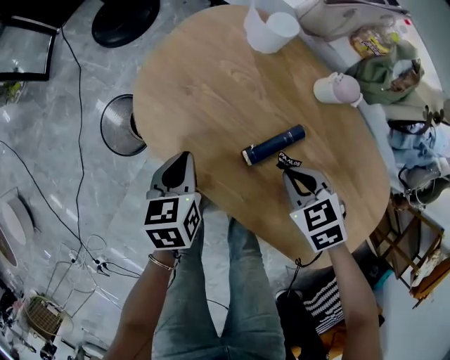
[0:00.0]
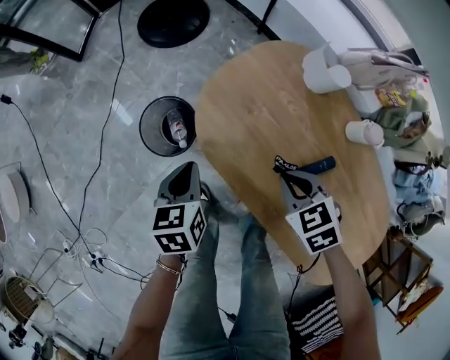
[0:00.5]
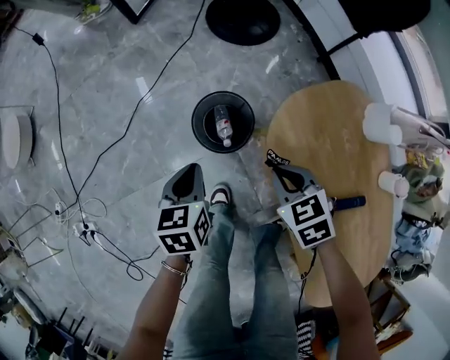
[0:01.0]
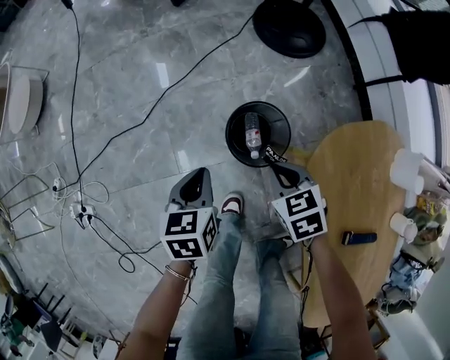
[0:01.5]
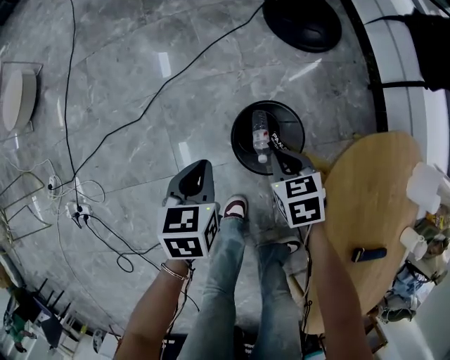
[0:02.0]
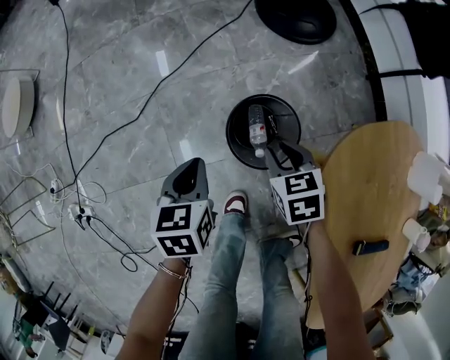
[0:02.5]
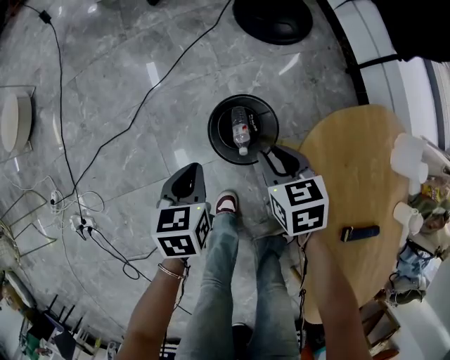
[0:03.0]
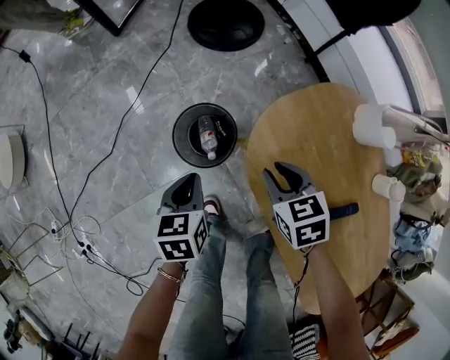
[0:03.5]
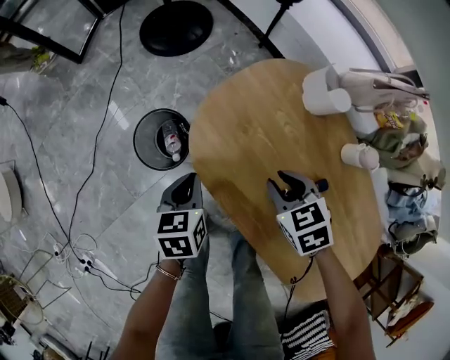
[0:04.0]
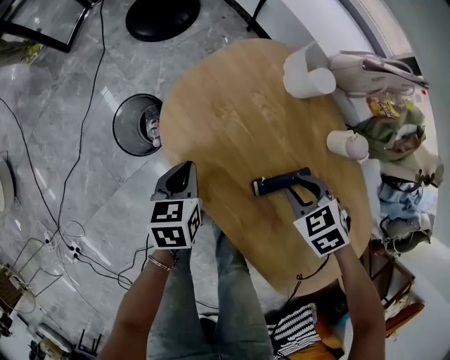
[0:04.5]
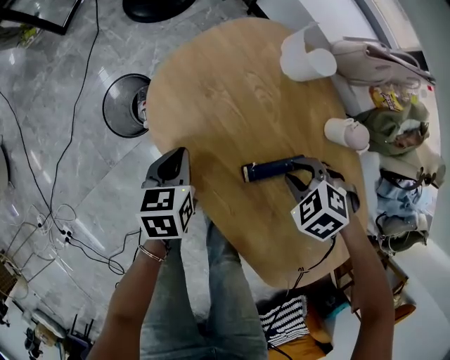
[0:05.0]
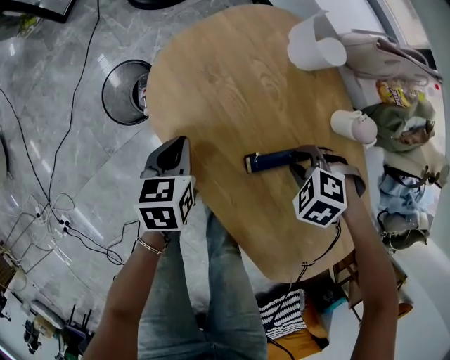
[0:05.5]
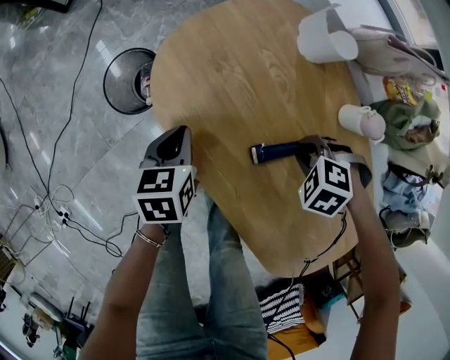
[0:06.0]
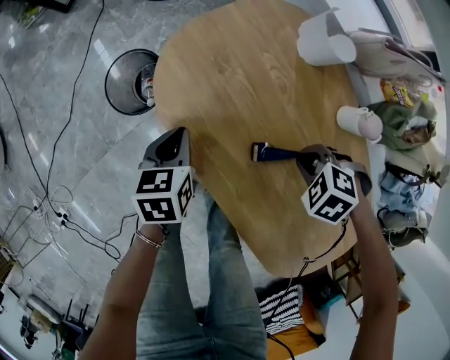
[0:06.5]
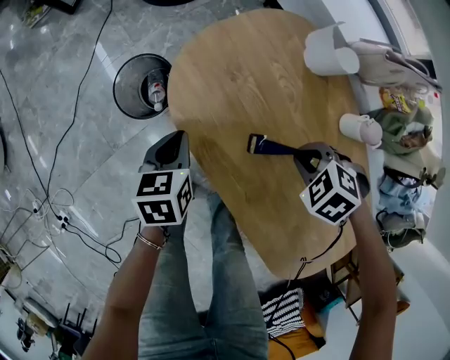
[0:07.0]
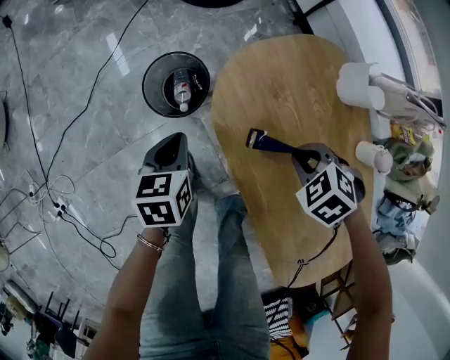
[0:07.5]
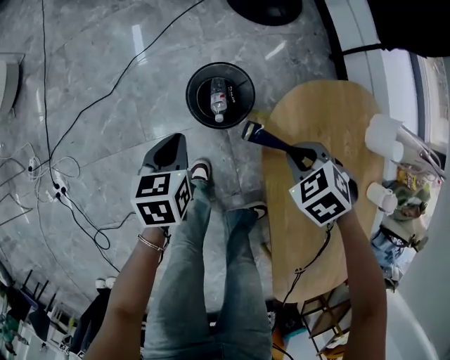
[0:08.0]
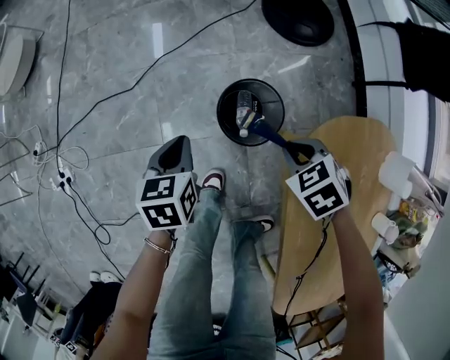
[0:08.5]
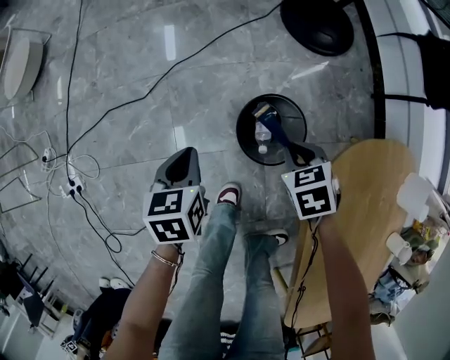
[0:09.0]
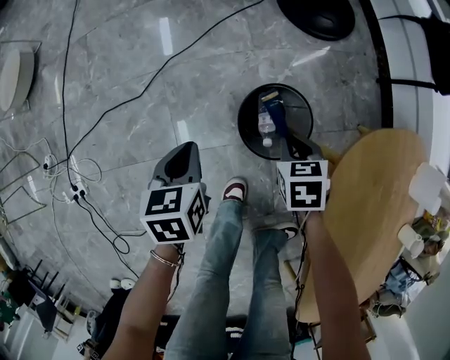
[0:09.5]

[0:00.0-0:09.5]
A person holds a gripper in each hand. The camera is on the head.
0:00.0 to 0:02.0: The right gripper moves roughly 50 cm, and rotates roughly 20 degrees; the left gripper ends up about 40 cm from where it was, and turns by approximately 30 degrees.
0:02.0 to 0:04.0: The left gripper heads to the right, covering about 25 cm, and changes its angle by approximately 20 degrees, while the right gripper moves to the right, backward and upward, approximately 35 cm, and opens up.
0:04.0 to 0:05.5: The right gripper shifts by approximately 20 cm, and rotates around the line of its fingers by about 40 degrees, counterclockwise from behind; the left gripper changes place by roughly 10 cm.
0:05.5 to 0:07.5: The left gripper ends up about 15 cm from where it was. Meanwhile the right gripper ends up about 15 cm from where it was, and closes its fingers.
0:07.5 to 0:09.5: The left gripper changes place by about 25 cm. Meanwhile the right gripper changes place by about 35 cm, and turns by some 30 degrees.

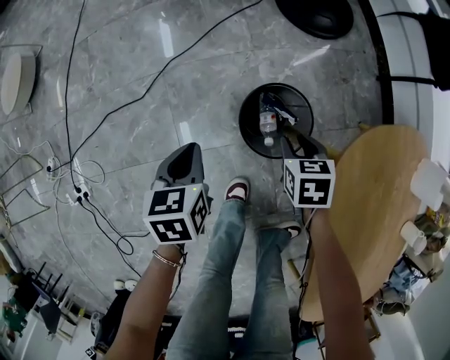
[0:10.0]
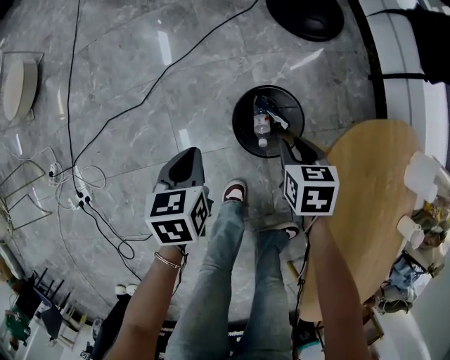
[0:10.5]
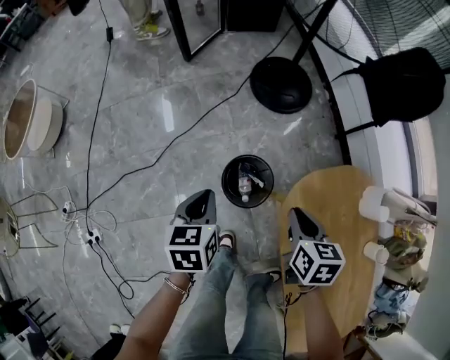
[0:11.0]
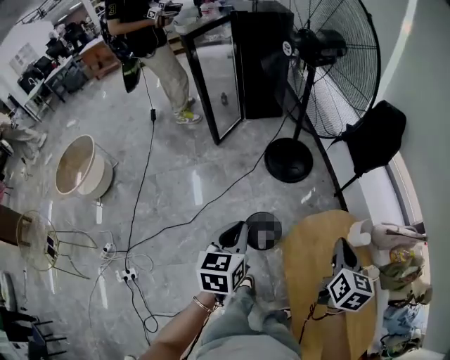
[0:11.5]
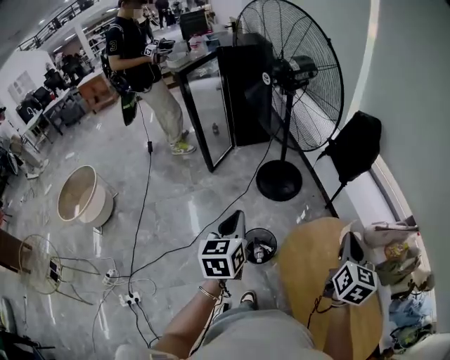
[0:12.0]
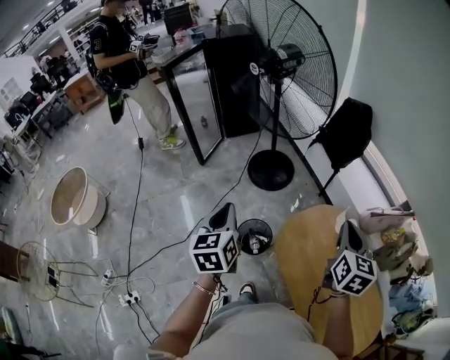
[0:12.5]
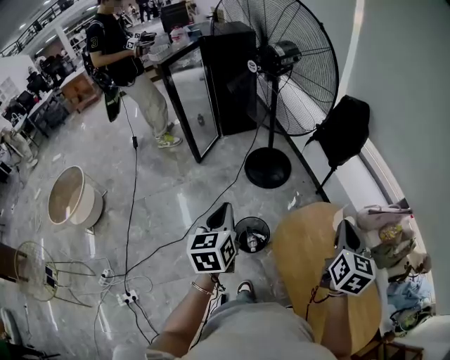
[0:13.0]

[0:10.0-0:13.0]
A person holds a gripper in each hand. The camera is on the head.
0:10.0 to 0:11.5: Both grippers move upward, some 50 cm. The right gripper angles its fingers upward, by about 40 degrees, and closes, while the left gripper rotates about 30 degrees.
0:11.5 to 0:13.0: The left gripper goes approximately 5 cm upward. Meanwhile the right gripper is displaced upward and to the right by some 10 cm.

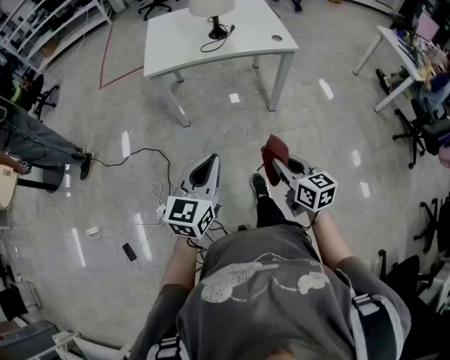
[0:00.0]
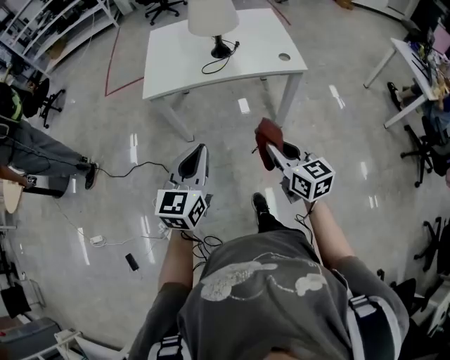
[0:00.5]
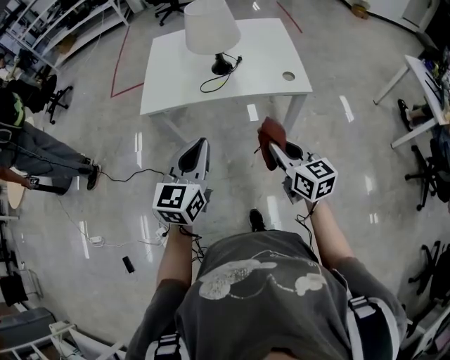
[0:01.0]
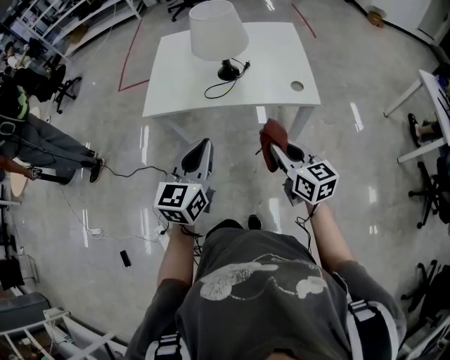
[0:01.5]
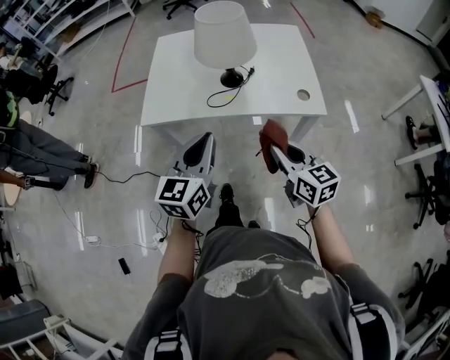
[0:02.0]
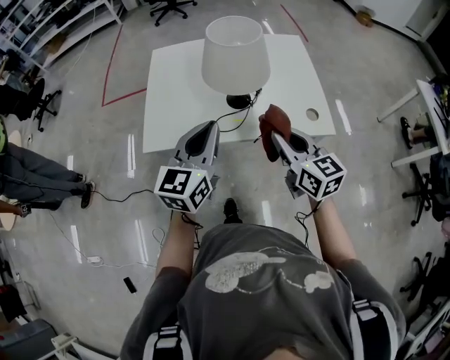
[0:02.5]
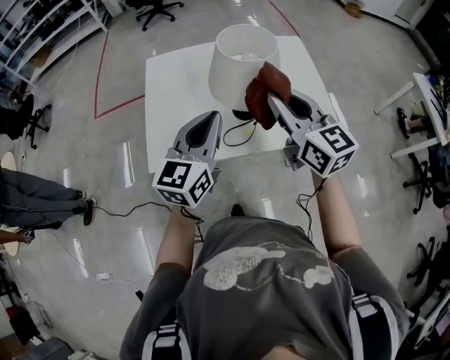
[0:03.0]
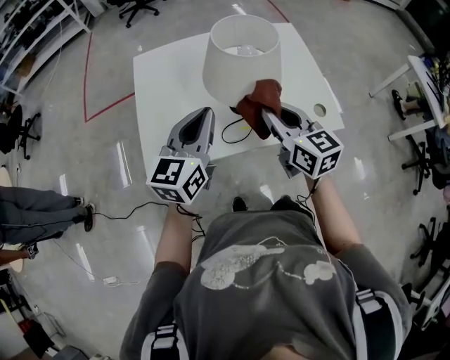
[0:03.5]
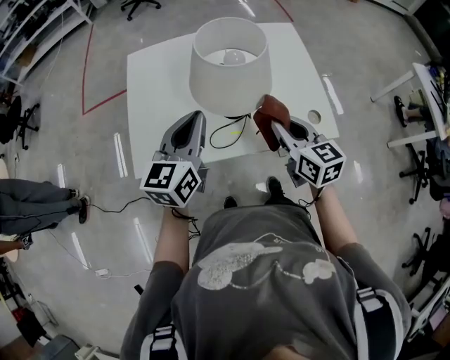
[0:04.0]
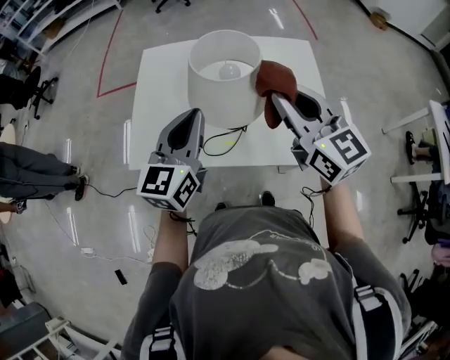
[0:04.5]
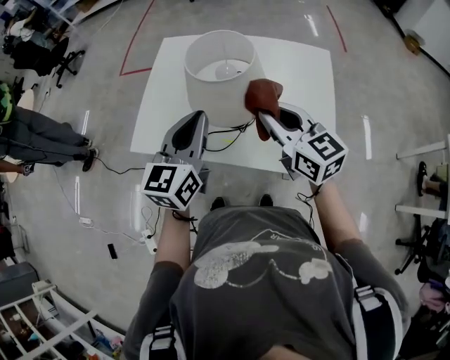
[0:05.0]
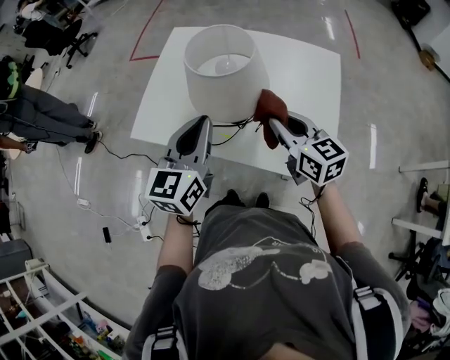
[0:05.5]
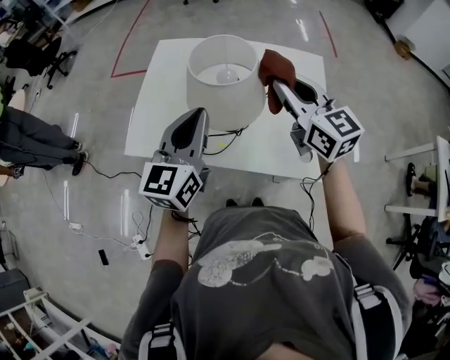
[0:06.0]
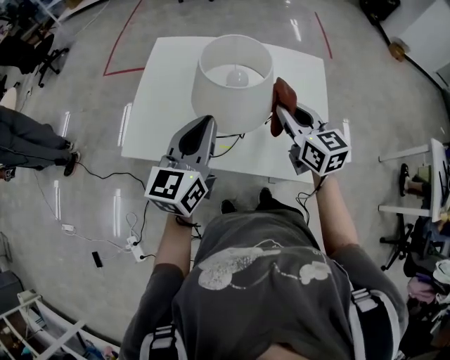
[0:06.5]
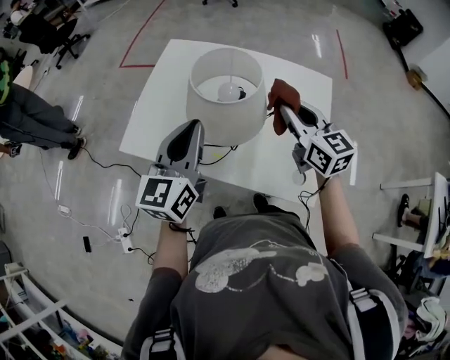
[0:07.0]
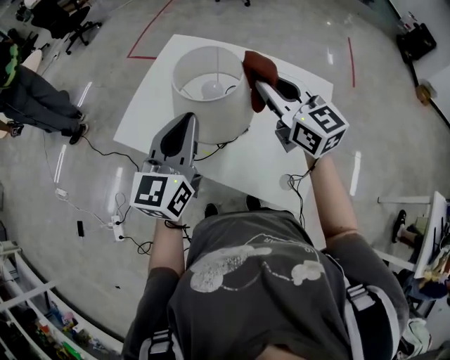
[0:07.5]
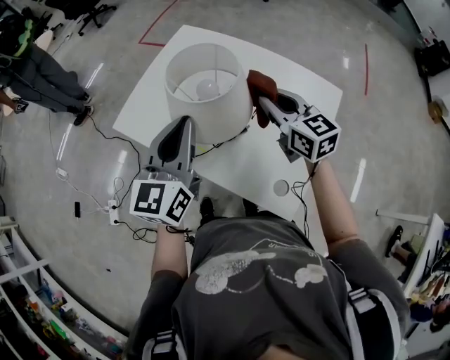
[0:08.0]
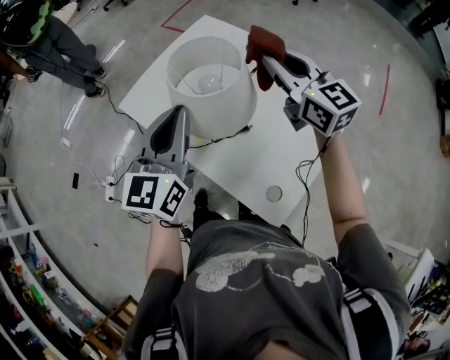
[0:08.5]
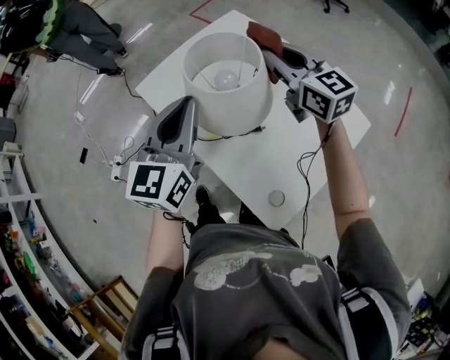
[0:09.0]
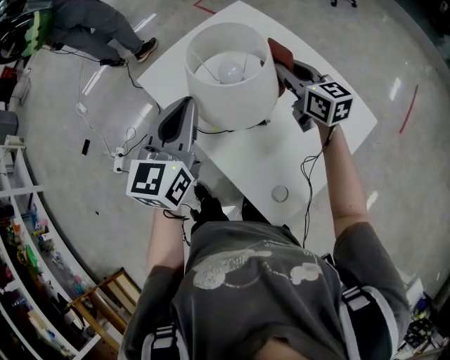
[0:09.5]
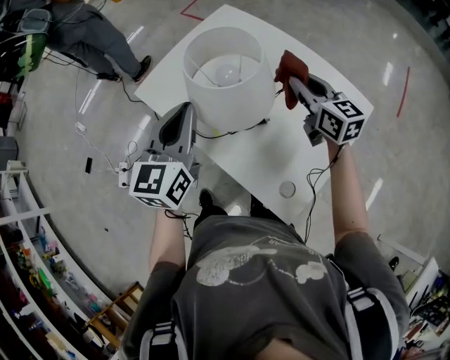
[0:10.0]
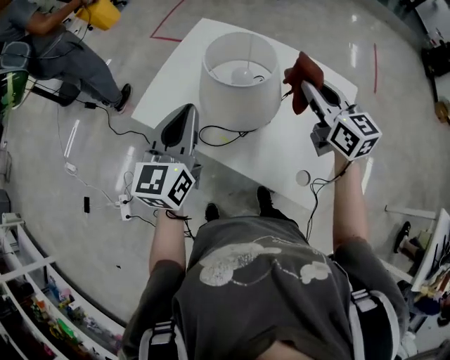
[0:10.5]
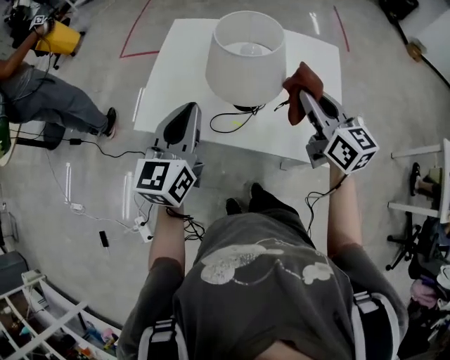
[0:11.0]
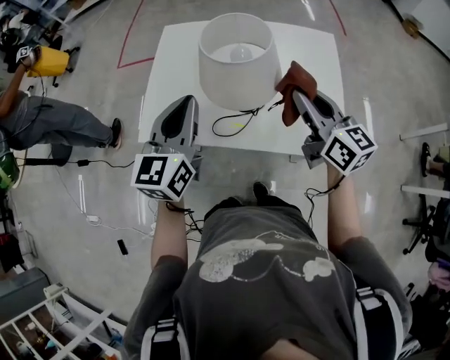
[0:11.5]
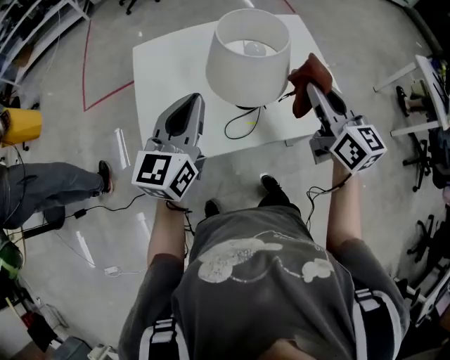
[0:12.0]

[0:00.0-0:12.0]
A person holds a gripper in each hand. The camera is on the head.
0:00.0 to 0:02.0: Both grippers move forward, approximately 35 cm.
0:02.0 to 0:04.0: The two grippers go about 25 cm forward.
0:04.0 to 0:06.0: The right gripper moves up and down over roughly 15 cm, changing direction 2 times, and changes its angle by approximately 30 degrees; the left gripper is displaced upward by approximately 5 cm.
0:06.0 to 0:08.0: The left gripper moves about 5 cm, and changes its angle by about 20 degrees; the right gripper swings up and down, about 10 cm each way, with 2 reversals, and changes its angle by approximately 20 degrees.
0:08.0 to 0:10.0: The right gripper travels upward and back again, approximately 10 cm each way.
0:10.0 to 0:12.0: The right gripper ends up some 25 cm from where it was, and changes its angle by roughly 60 degrees. Meanwhile the left gripper moves some 10 cm, and turns by some 60 degrees.

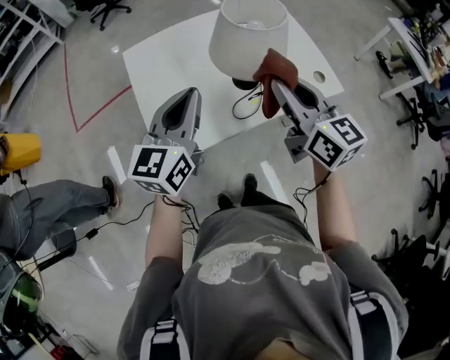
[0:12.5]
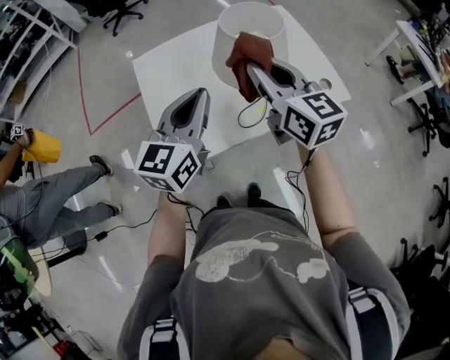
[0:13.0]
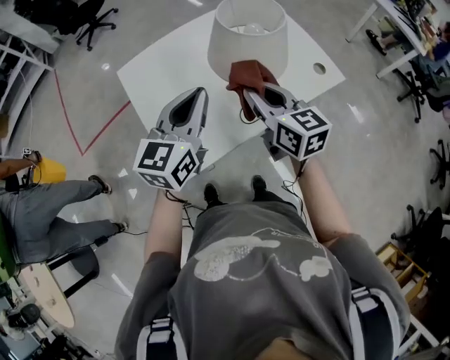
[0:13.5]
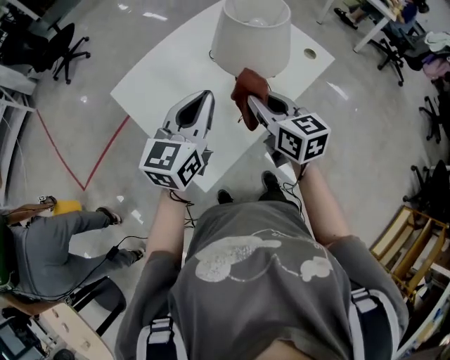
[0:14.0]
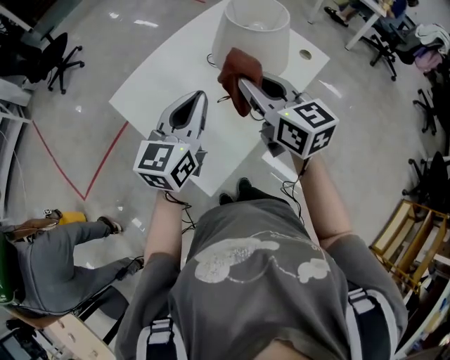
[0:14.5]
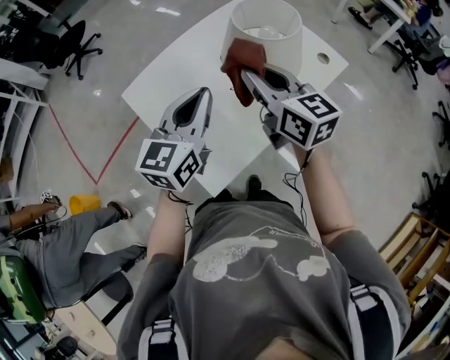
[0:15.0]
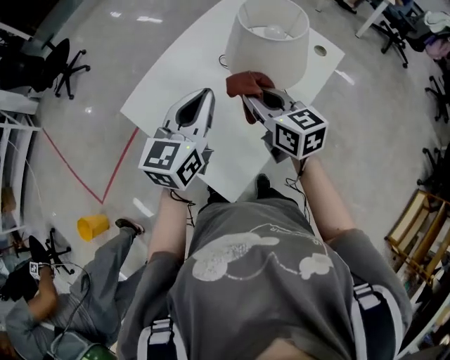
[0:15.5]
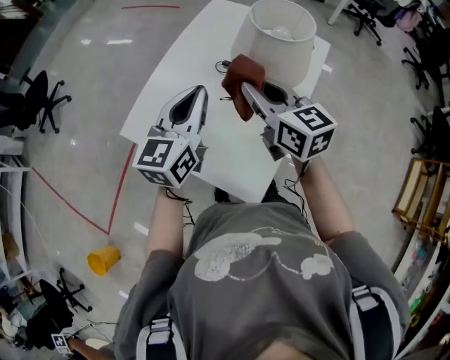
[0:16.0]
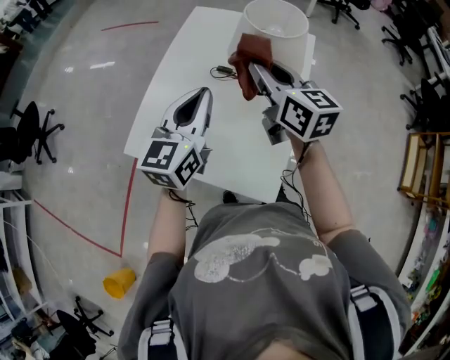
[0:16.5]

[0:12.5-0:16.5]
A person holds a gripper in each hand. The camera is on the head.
0:12.5 to 0:14.5: The right gripper is displaced to the left by some 10 cm, goes downward and returns, about 10 cm each way, and changes its angle by roughly 20 degrees. The left gripper is displaced forward by roughly 5 cm, and turns by roughly 30 degrees.
0:14.5 to 0:16.5: The left gripper moves some 10 cm, and turns by roughly 20 degrees. The right gripper moves roughly 10 cm downward and comes back, and turns by about 30 degrees.
